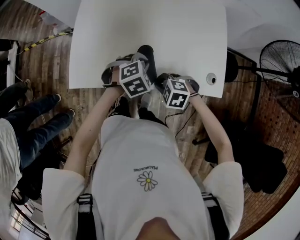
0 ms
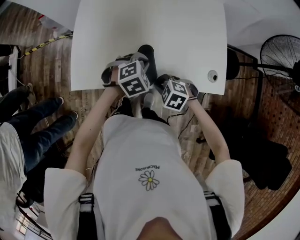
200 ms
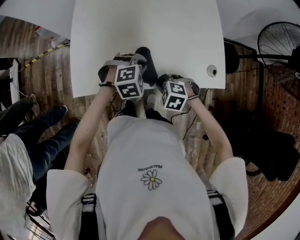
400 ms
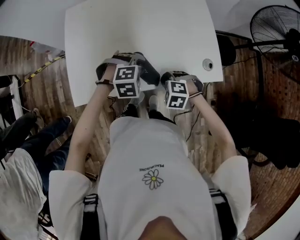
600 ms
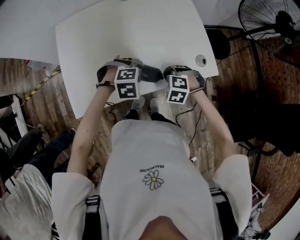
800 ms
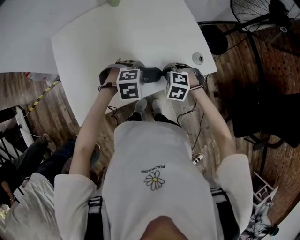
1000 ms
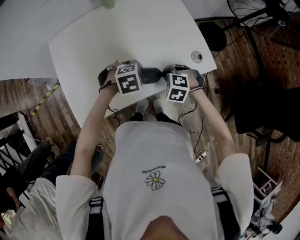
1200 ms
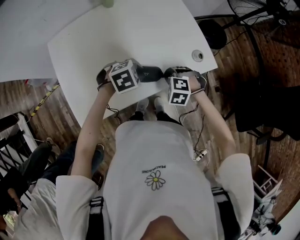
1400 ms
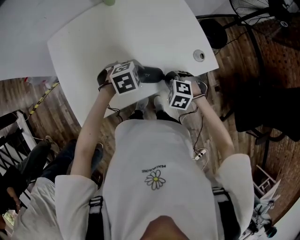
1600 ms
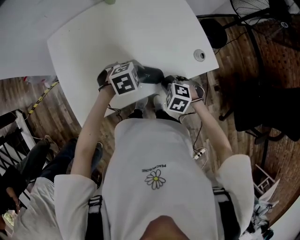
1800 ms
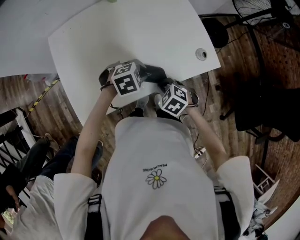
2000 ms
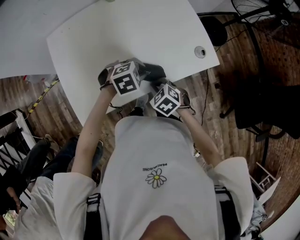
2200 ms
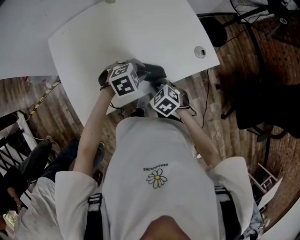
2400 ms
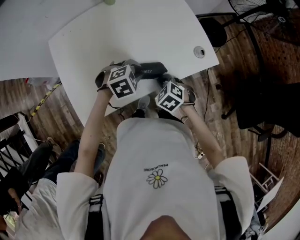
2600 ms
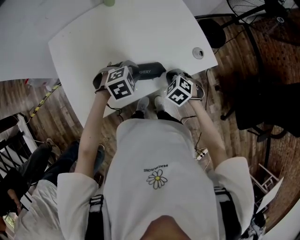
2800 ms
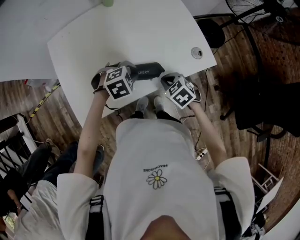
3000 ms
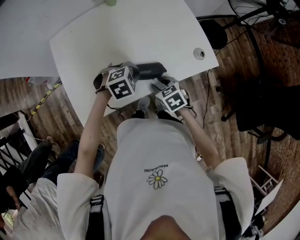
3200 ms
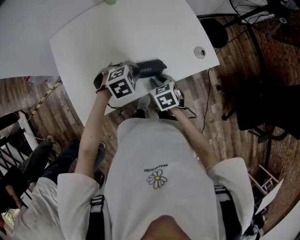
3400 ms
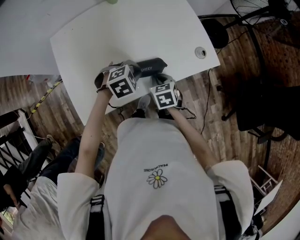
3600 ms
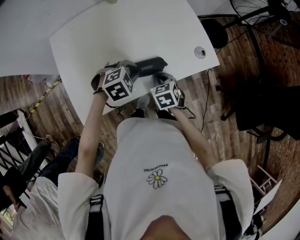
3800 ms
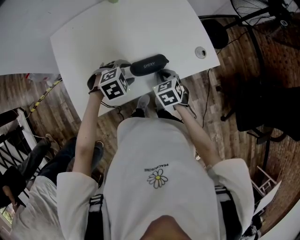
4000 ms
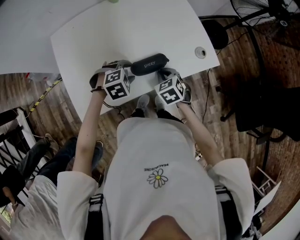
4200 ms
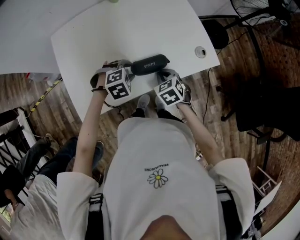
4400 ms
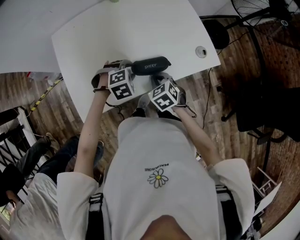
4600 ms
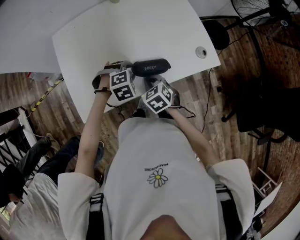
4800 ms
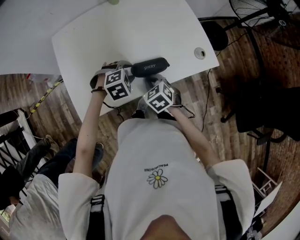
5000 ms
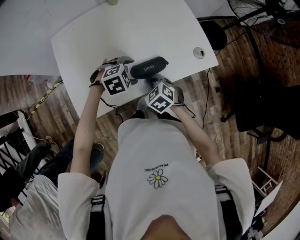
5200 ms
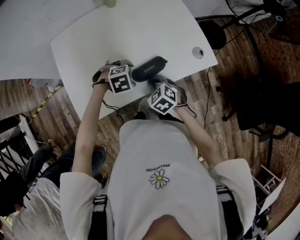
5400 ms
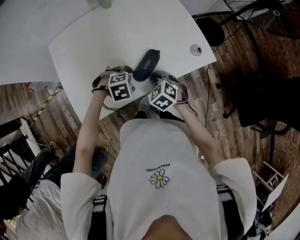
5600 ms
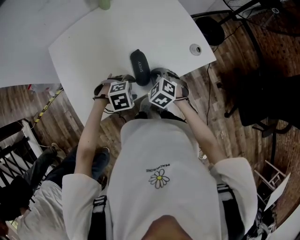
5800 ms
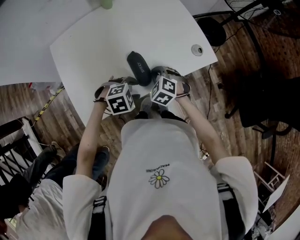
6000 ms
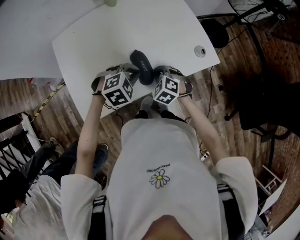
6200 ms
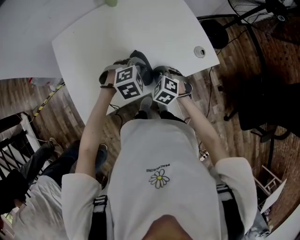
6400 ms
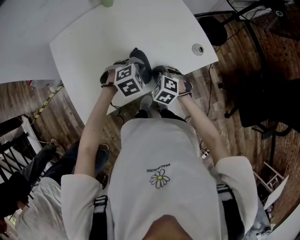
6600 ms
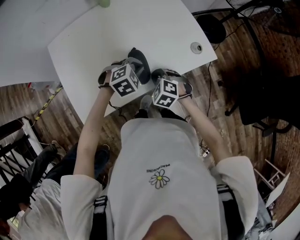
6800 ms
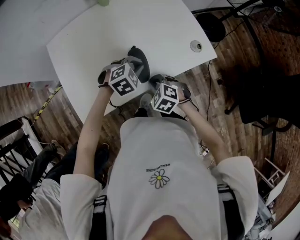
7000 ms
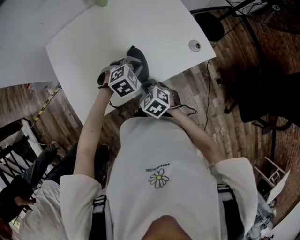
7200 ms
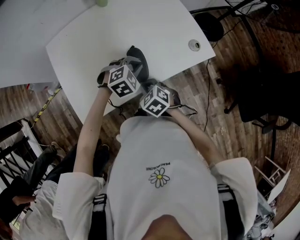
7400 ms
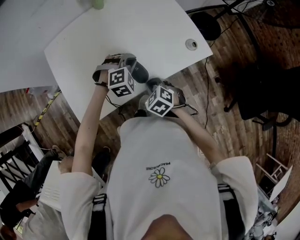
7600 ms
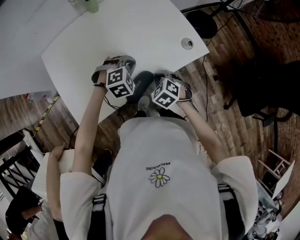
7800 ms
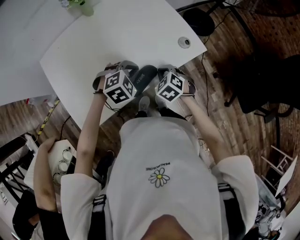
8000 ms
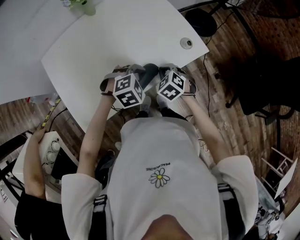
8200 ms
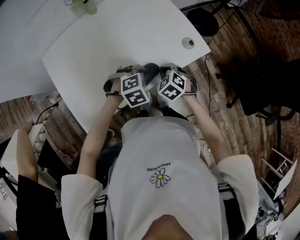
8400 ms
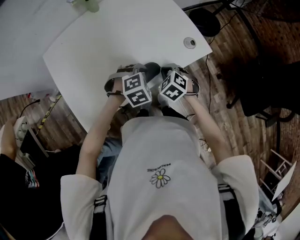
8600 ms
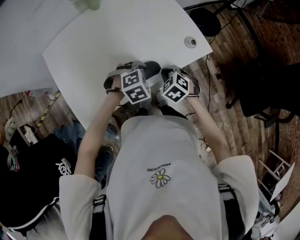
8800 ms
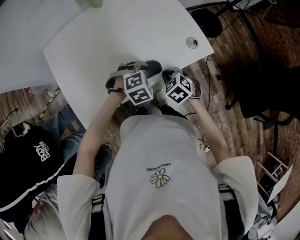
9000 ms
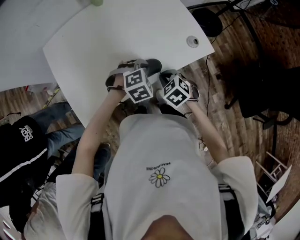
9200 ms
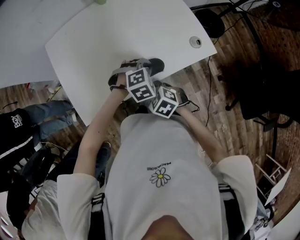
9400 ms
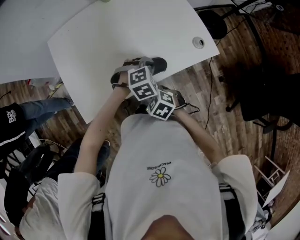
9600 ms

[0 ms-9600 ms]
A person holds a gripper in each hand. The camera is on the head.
0 ms to 1600 ms: The left gripper changes place by some 5 cm, and rotates some 40 degrees. The right gripper moves about 10 cm, and changes its angle by roughly 30 degrees.
1600 ms to 3200 ms: The right gripper rotates around the line of its fingers by roughly 50 degrees, clockwise from behind, and opens.
3200 ms to 4800 ms: The right gripper goes some 5 cm to the left, and closes up.
4800 ms to 6400 ms: The left gripper shifts by some 5 cm, and closes, while the right gripper ends up approximately 5 cm from where it was, and turns by roughly 30 degrees.
6400 ms to 8000 ms: The right gripper travels to the right by approximately 10 cm.
8000 ms to 9600 ms: The right gripper changes place by some 15 cm, and turns by some 30 degrees.

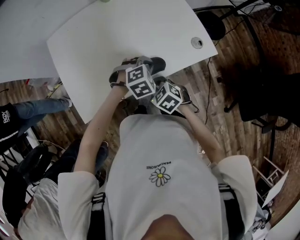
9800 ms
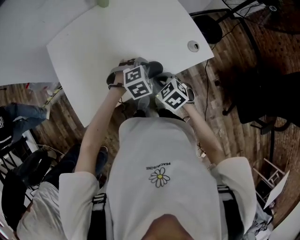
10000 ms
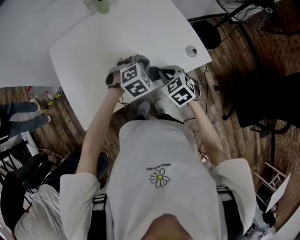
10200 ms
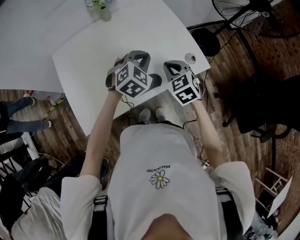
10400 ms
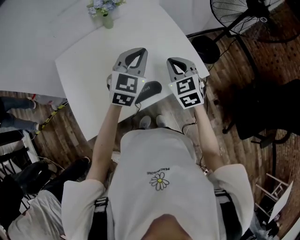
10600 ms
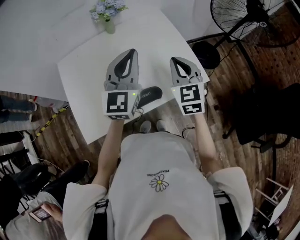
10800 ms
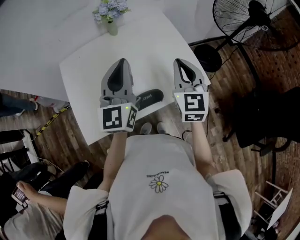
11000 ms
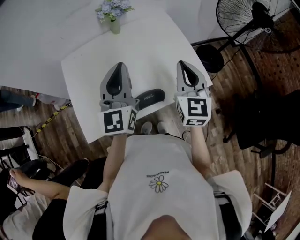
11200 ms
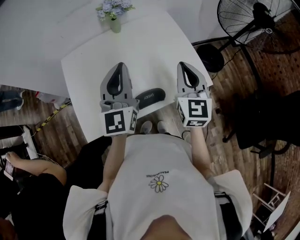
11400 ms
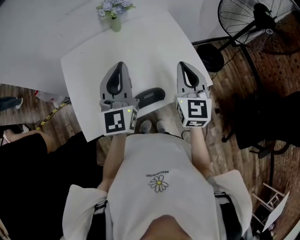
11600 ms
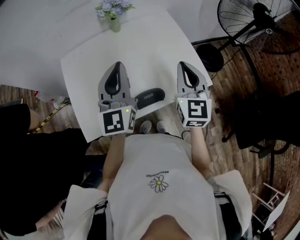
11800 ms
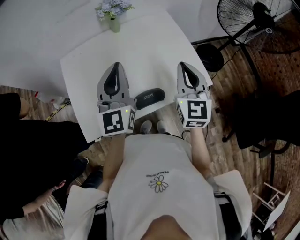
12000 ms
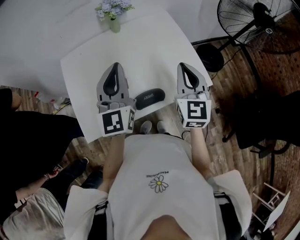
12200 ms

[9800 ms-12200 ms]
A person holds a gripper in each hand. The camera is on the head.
9800 ms to 11000 ms: The left gripper shifts roughly 30 cm upward, and tips its fingers upward by some 70 degrees; the right gripper shifts some 30 cm upward and forward, and tilts its fingers roughly 50 degrees upward.
11000 ms to 12200 ms: The grippers make only small movements.

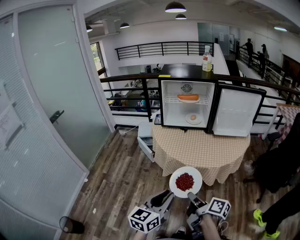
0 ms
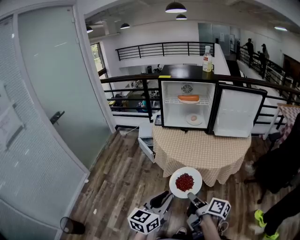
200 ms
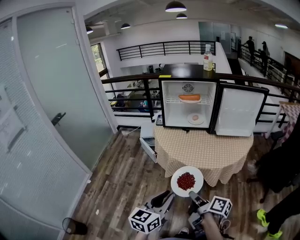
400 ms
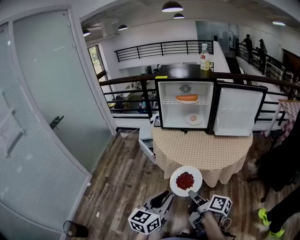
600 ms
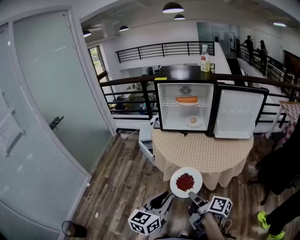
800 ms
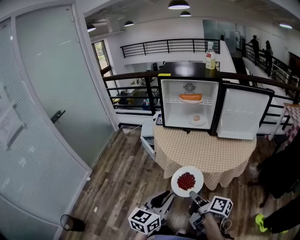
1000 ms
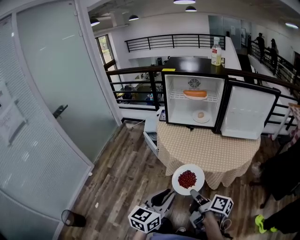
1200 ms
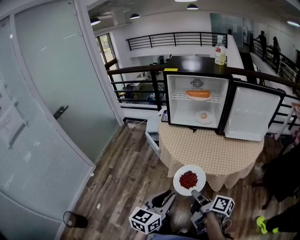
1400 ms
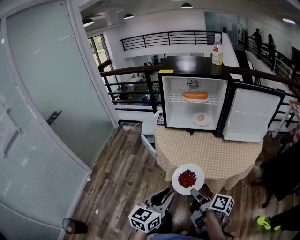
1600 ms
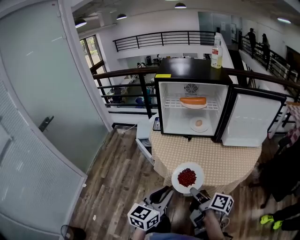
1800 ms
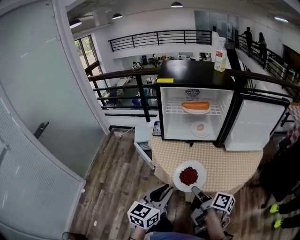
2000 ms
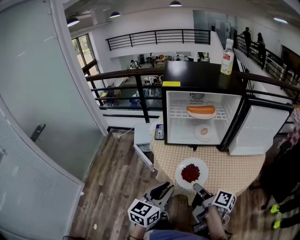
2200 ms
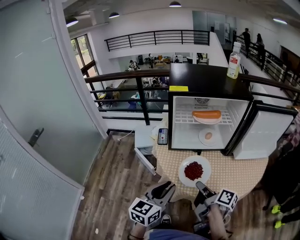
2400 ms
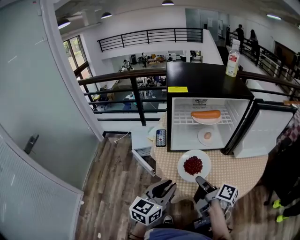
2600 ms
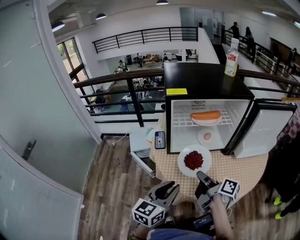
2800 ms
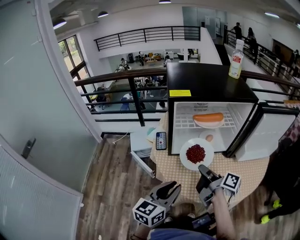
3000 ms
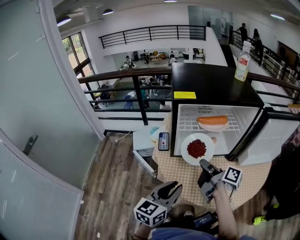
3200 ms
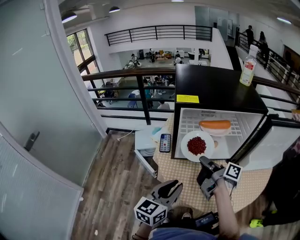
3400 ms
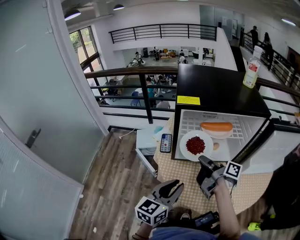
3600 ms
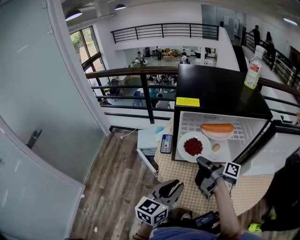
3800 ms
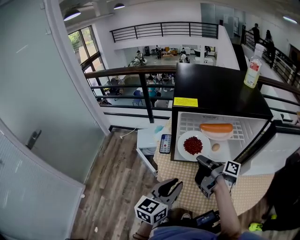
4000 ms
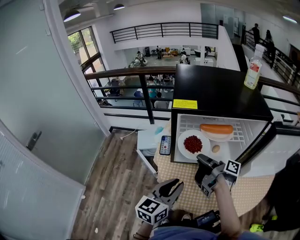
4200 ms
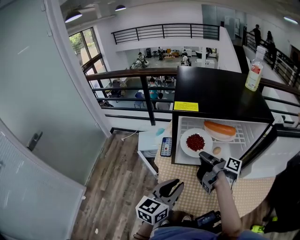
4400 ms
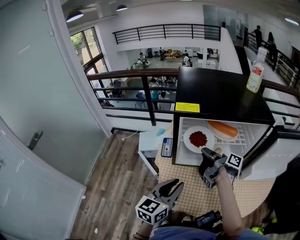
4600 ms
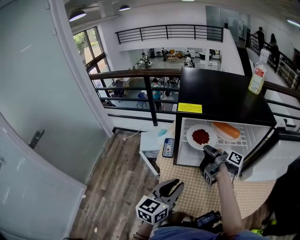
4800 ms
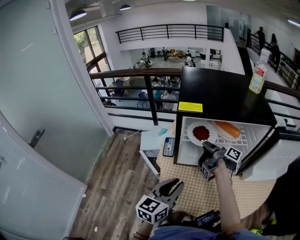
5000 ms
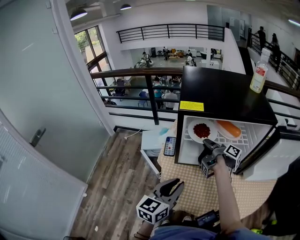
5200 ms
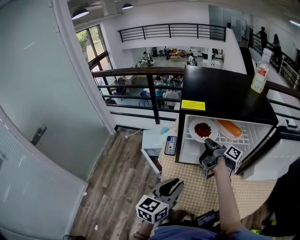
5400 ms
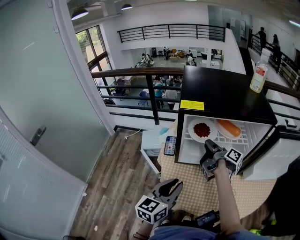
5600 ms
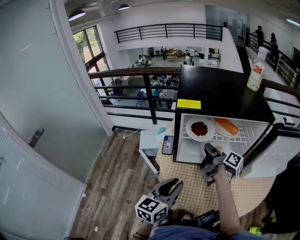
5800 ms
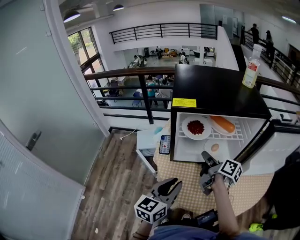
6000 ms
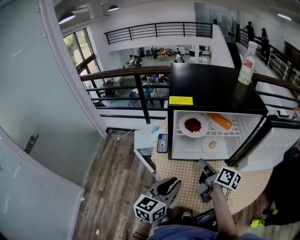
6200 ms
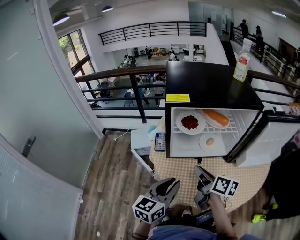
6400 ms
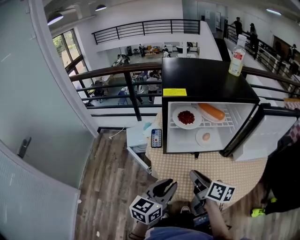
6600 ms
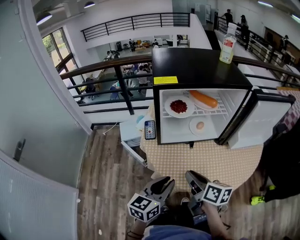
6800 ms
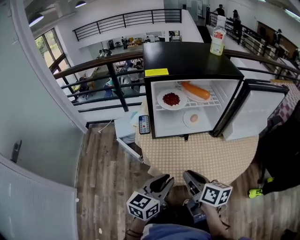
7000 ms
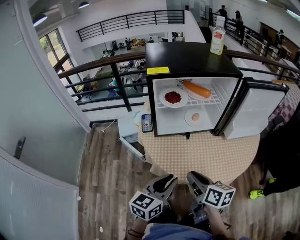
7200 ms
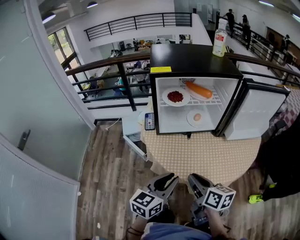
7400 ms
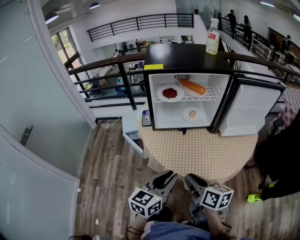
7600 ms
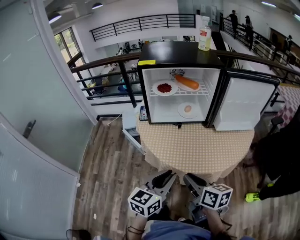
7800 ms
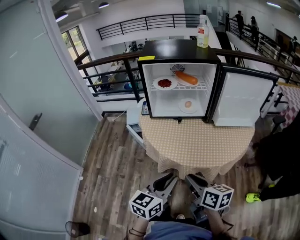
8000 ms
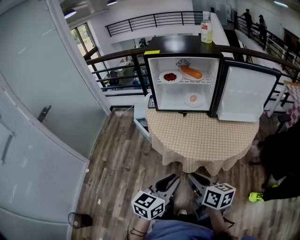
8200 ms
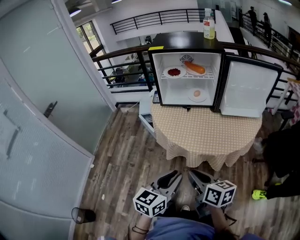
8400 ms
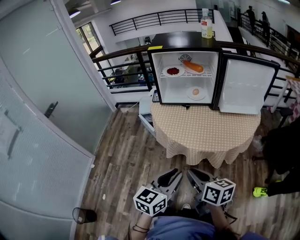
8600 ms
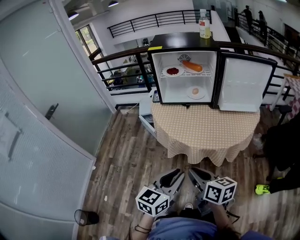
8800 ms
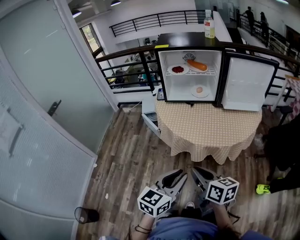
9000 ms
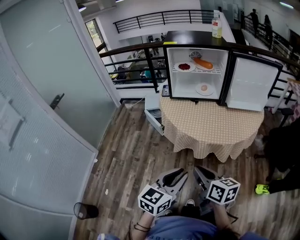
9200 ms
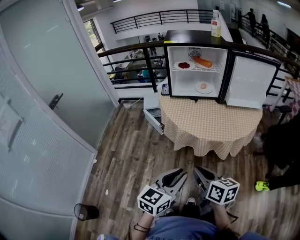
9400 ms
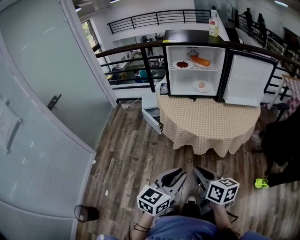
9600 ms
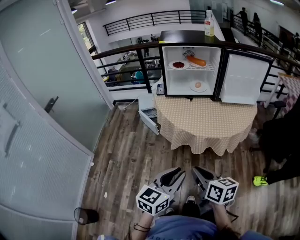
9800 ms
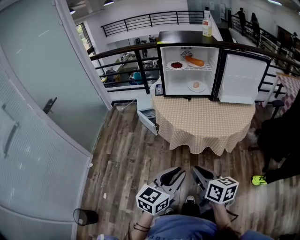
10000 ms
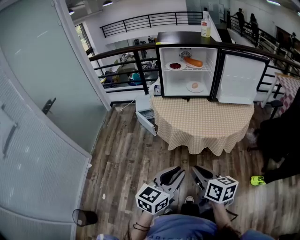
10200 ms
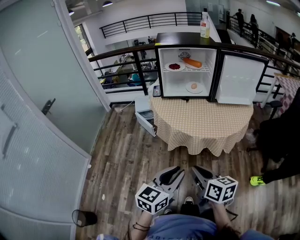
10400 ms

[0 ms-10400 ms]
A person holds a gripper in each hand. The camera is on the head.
0 ms to 1400 ms: Both grippers travel together forward, about 10 cm.
1400 ms to 3000 ms: The two grippers go some 35 cm forward.
3000 ms to 4400 ms: The left gripper is displaced forward by roughly 10 cm. The right gripper travels forward by approximately 15 cm.
4400 ms to 6000 ms: The right gripper moves roughly 5 cm forward and comes back, and swivels approximately 20 degrees.
6000 ms to 7400 ms: The left gripper moves backward, about 15 cm; the right gripper goes some 30 cm backward, and changes its angle by approximately 30 degrees.
7400 ms to 9000 ms: Both grippers move backward, roughly 25 cm.
9000 ms to 10400 ms: Both grippers move backward, about 5 cm.

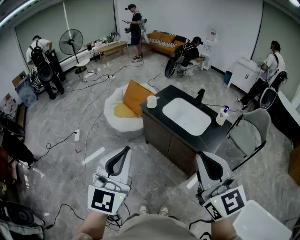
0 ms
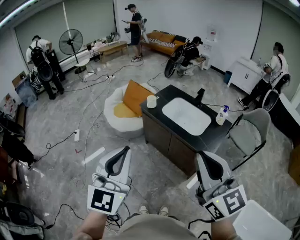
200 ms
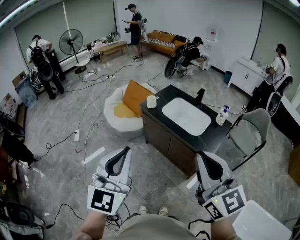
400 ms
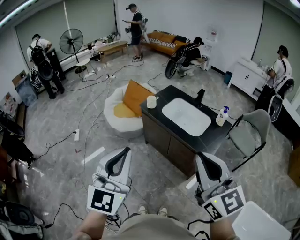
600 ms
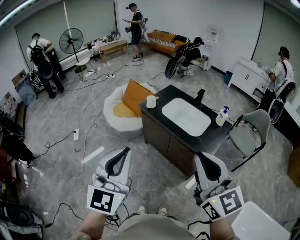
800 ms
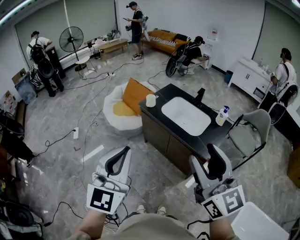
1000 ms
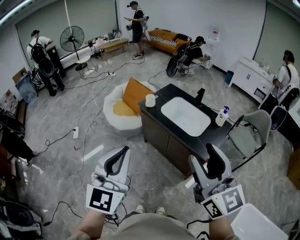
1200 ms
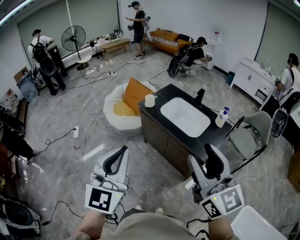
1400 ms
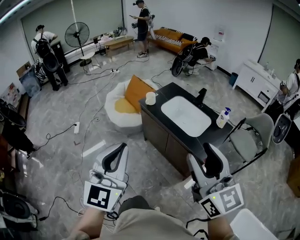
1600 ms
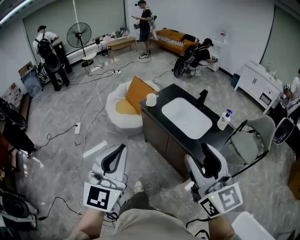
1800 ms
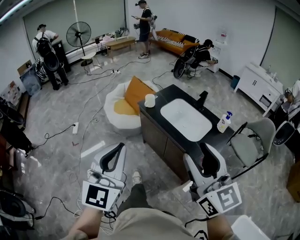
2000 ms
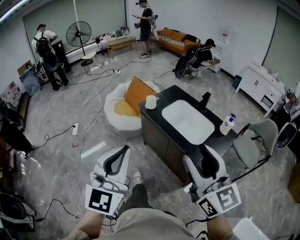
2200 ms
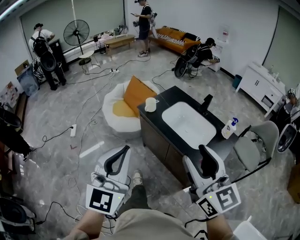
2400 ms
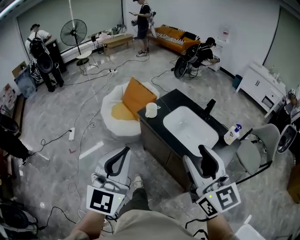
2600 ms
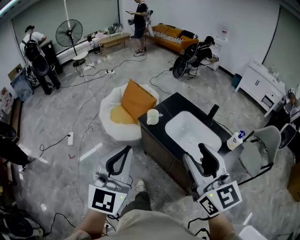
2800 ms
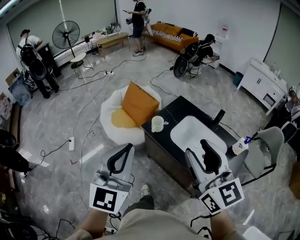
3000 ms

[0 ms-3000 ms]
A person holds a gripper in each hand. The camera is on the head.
0 ms to 1600 ms: The right gripper moves some 5 cm, and opens.
1600 ms to 3000 ms: The two grippers go approximately 35 cm forward.
